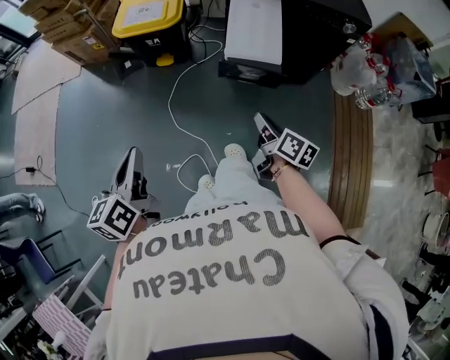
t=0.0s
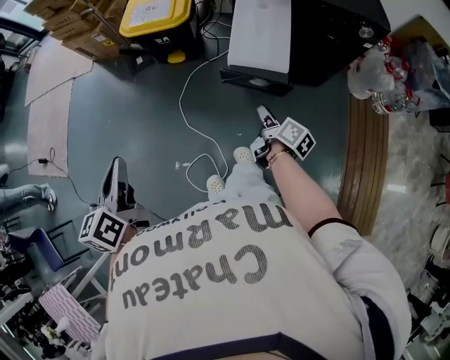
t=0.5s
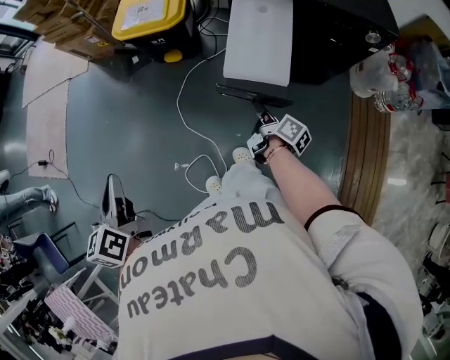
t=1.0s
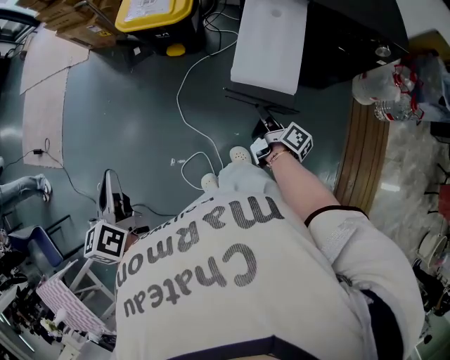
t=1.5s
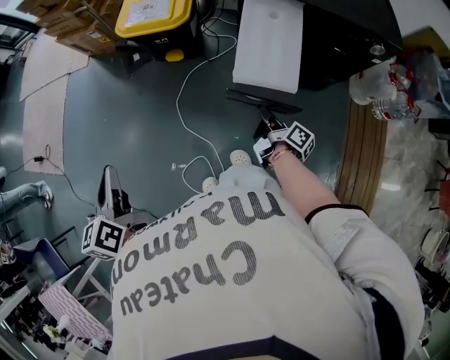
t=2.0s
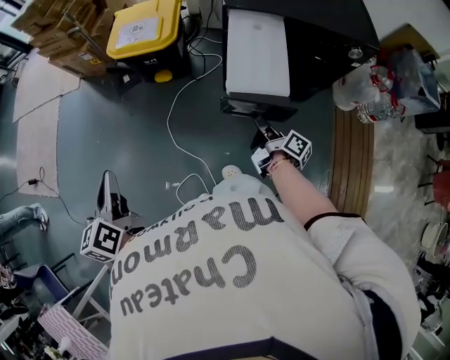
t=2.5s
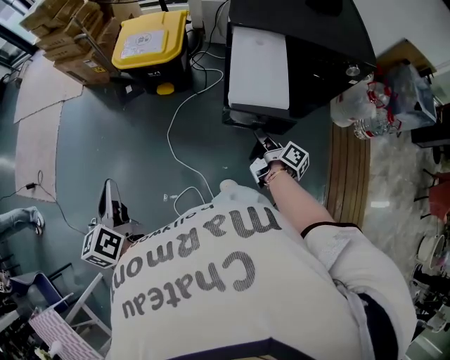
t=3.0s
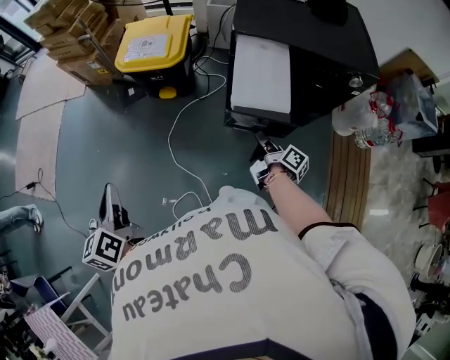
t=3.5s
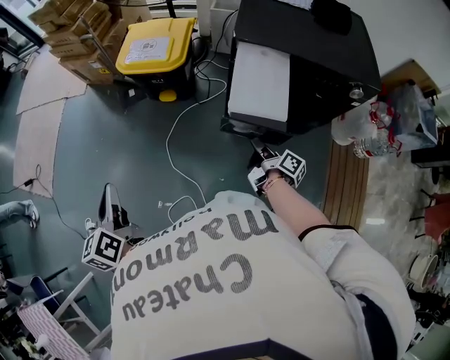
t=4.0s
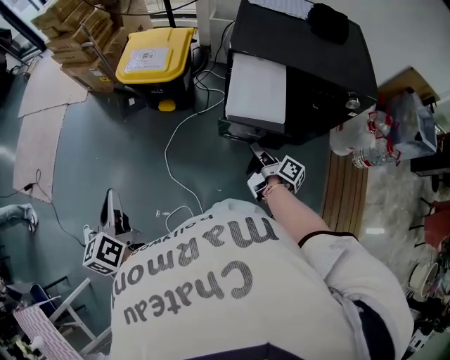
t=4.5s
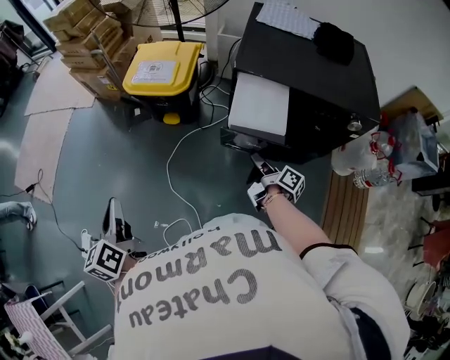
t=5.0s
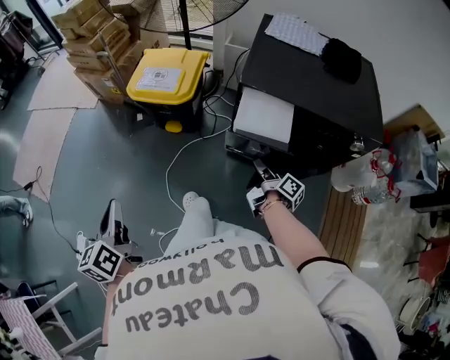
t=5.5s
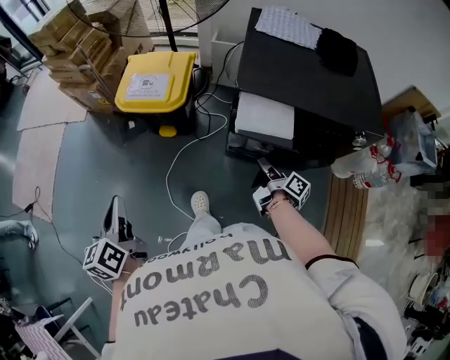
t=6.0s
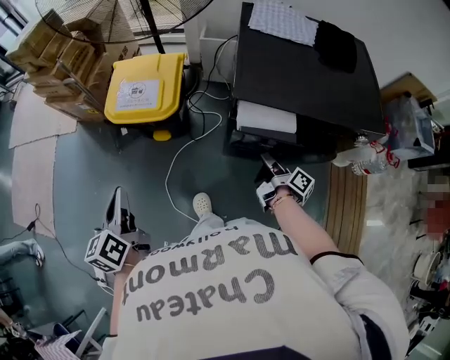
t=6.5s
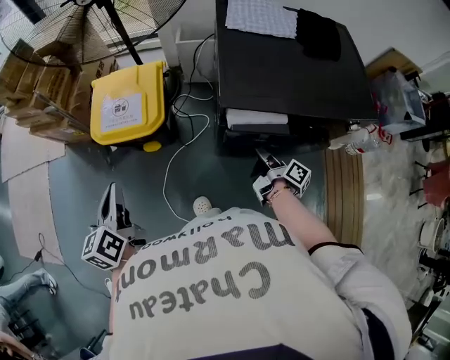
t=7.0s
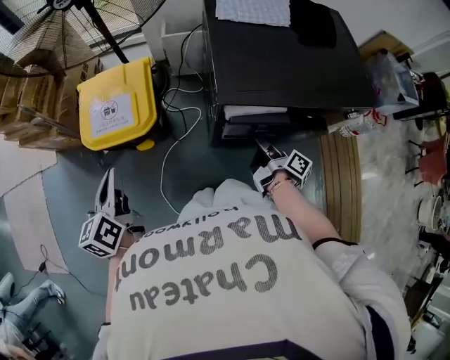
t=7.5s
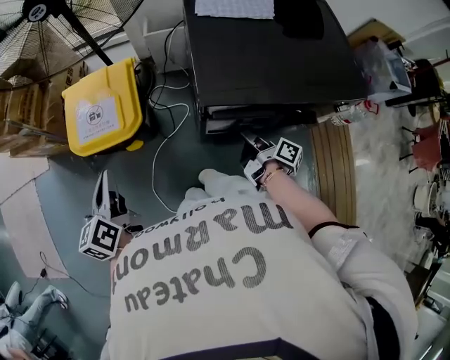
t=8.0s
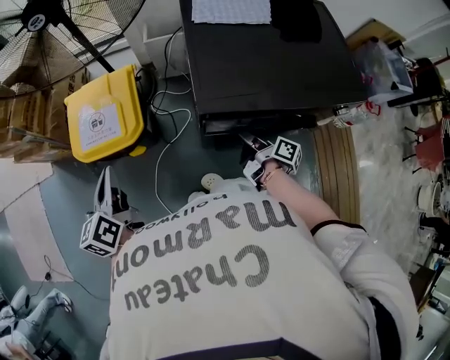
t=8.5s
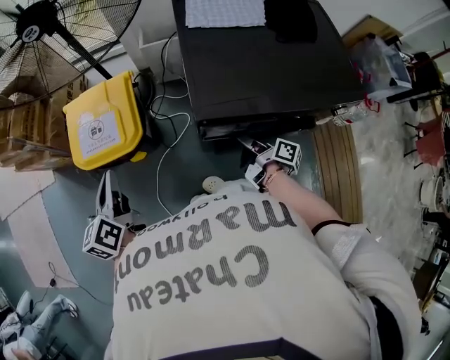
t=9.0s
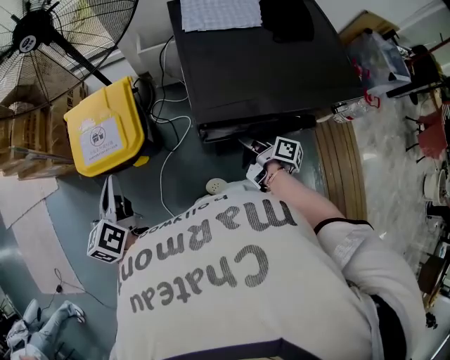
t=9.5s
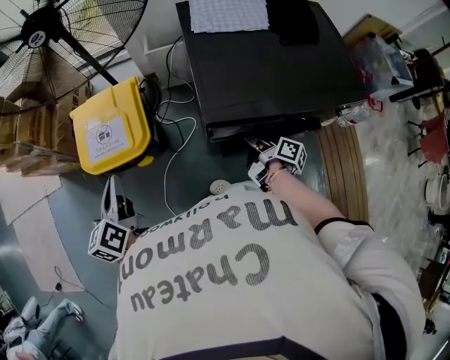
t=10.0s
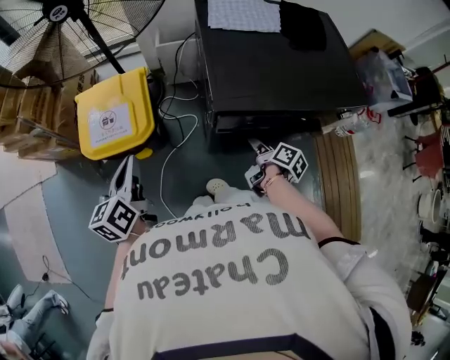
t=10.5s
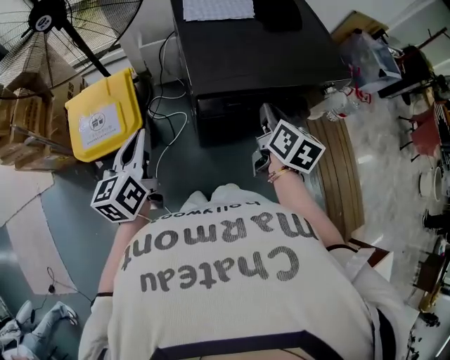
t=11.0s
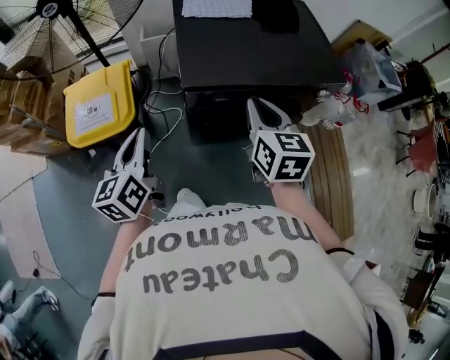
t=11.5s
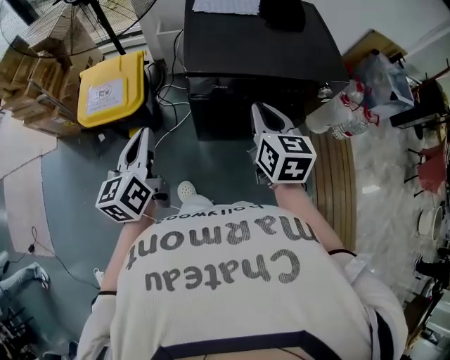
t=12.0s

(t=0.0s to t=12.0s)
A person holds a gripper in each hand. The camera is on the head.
t=0.0s - t=2.0s: The left gripper travels forward by about 10 cm, while the right gripper is displaced forward and downward by about 15 cm, and changes its angle by about 30 degrees.
t=2.0s - t=4.0s: The right gripper shifts by approximately 5 cm.
t=4.0s - t=6.0s: The left gripper heads forward, covering approximately 10 cm; the right gripper travels forward and to the right by roughly 10 cm.
t=6.0s - t=8.0s: The right gripper travels forward by approximately 10 cm. The left gripper travels forward by roughly 25 cm.
t=8.0s - t=10.0s: There are only small adjustments of the grippers.
t=10.0s - t=12.0s: The left gripper is displaced to the right and backward by roughly 20 cm, while the right gripper heads upward and backward, covering roughly 25 cm, rolls counterclockwise, seen from behind, by some 70 degrees, and opens, then closes once more.

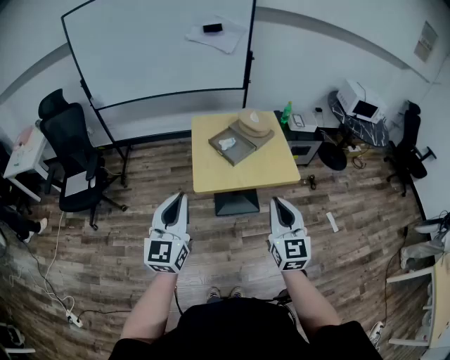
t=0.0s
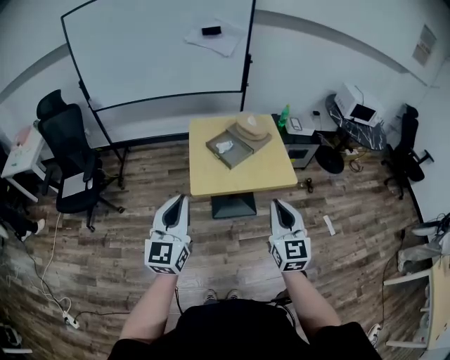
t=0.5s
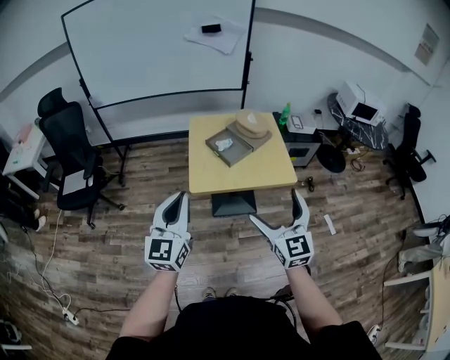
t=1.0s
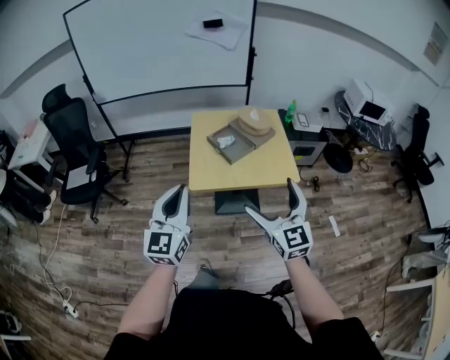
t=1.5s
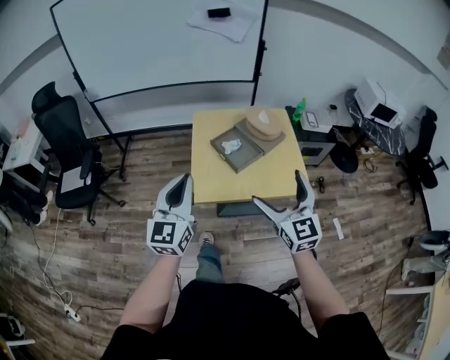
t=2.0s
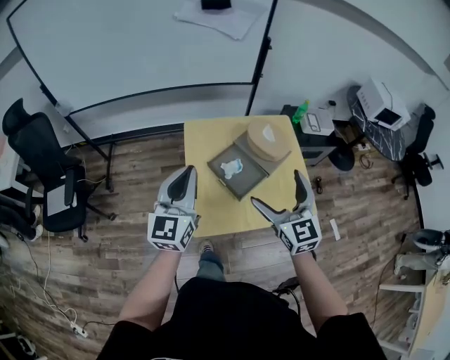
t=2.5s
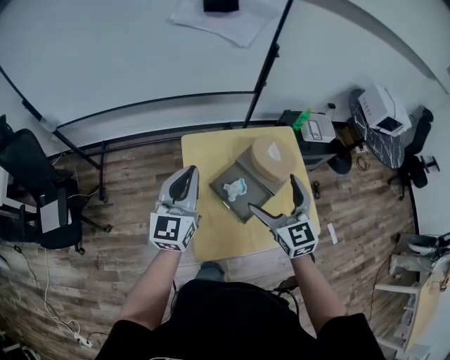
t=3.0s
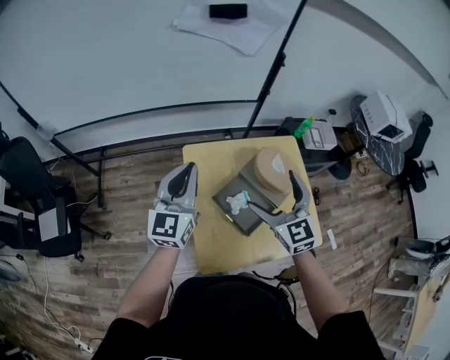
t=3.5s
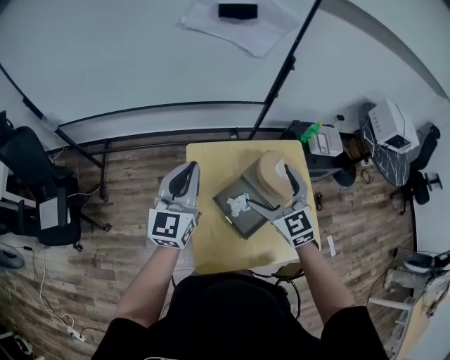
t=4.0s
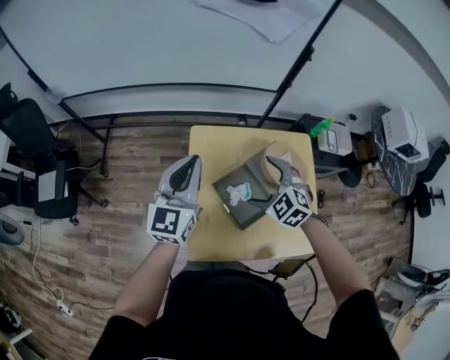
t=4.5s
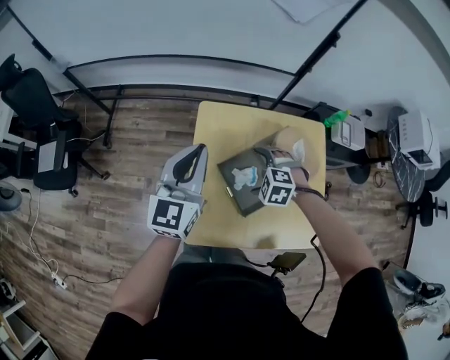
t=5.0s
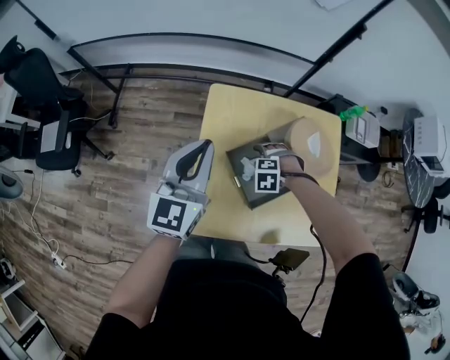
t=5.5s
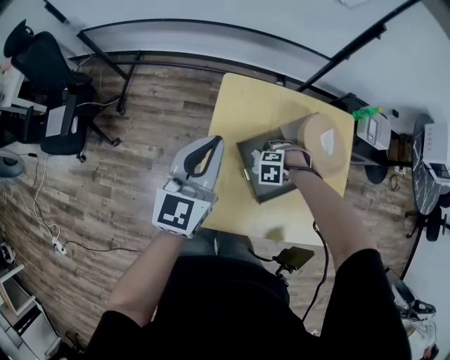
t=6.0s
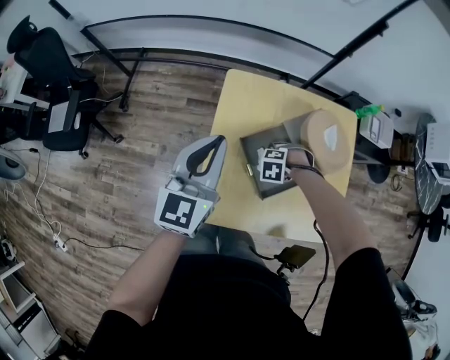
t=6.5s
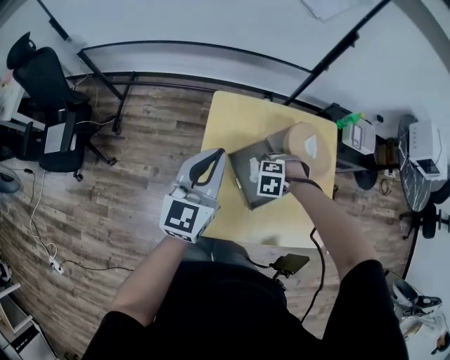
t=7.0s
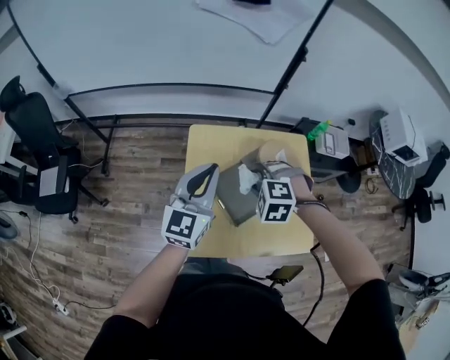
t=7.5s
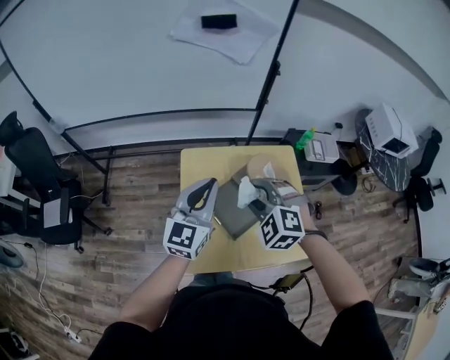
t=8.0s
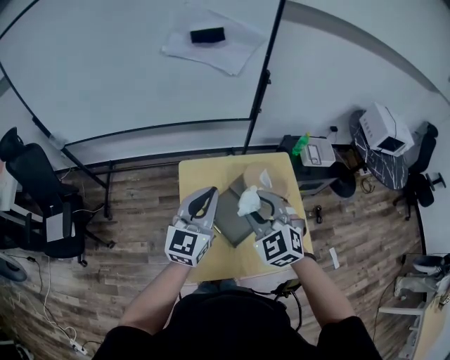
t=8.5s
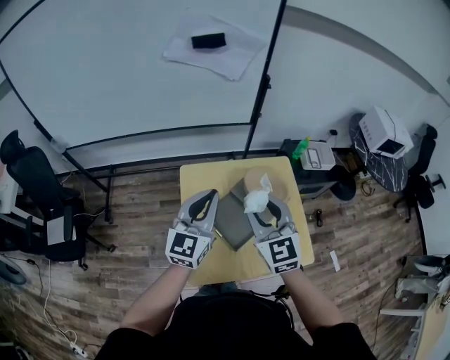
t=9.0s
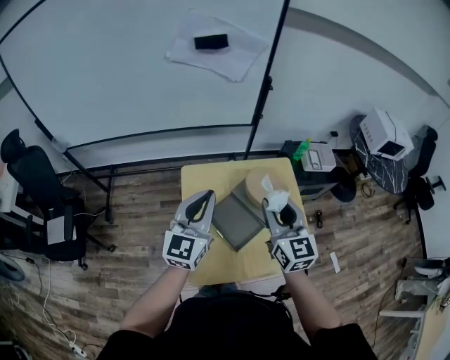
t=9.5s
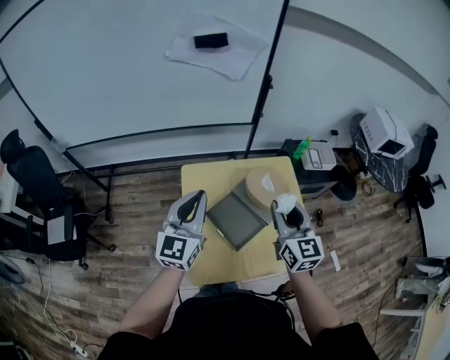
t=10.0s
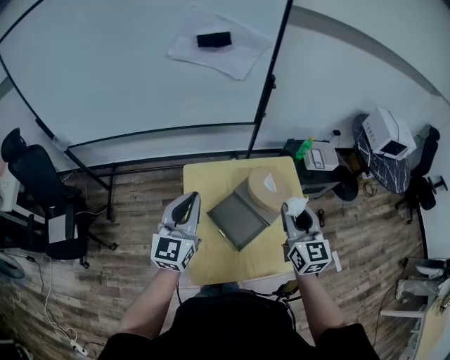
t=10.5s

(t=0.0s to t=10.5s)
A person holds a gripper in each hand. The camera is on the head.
t=0.0s - t=2.0s: Both grippers travel together forward, some 15 cm. The right gripper opens up.
t=2.0s - t=4.0s: Both grippers are carried forward, approximately 40 cm. The right gripper changes its angle by roughly 20 degrees.
t=4.0s - t=6.5s: The left gripper shifts roughly 10 cm downward; the right gripper heads downward, covering about 35 cm, points its fingers about 60 degrees further downward, and closes up.
t=6.5s - t=8.5s: The left gripper shifts approximately 10 cm upward, and rotates some 20 degrees. Meanwhile the right gripper heads upward, covering roughly 40 cm, and tips its fingers upward by about 60 degrees.
t=8.5s - t=10.5s: The right gripper shifts roughly 10 cm to the right, and twists about 40 degrees clockwise, seen from behind; the left gripper shifts some 5 cm to the left.

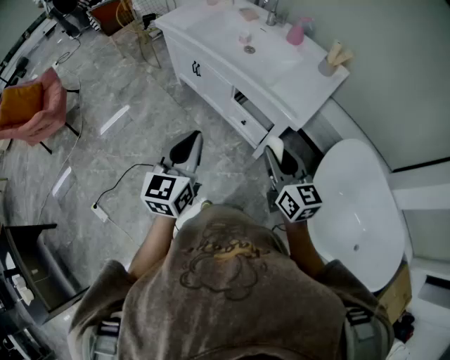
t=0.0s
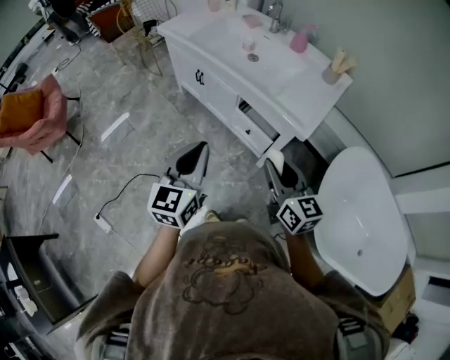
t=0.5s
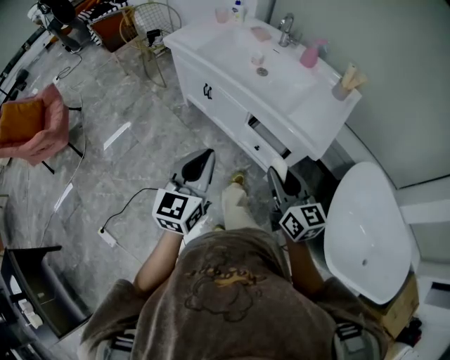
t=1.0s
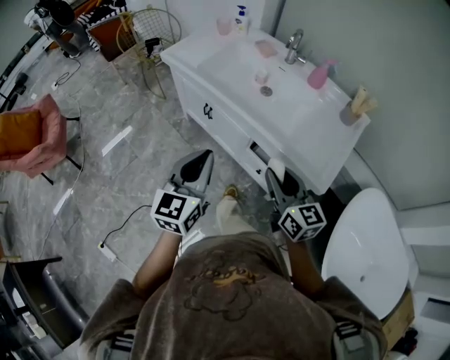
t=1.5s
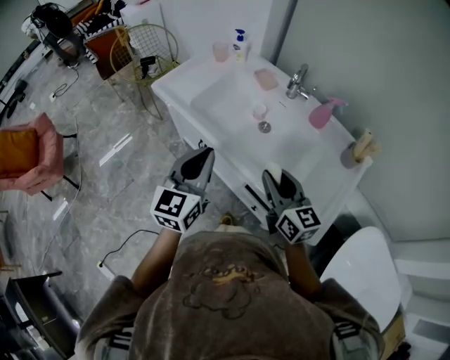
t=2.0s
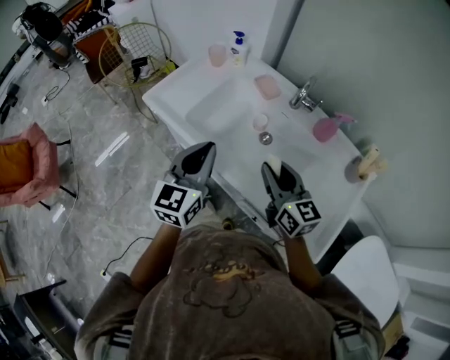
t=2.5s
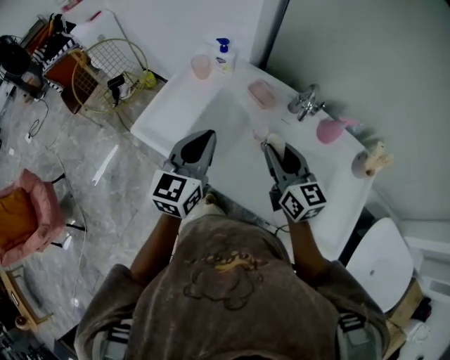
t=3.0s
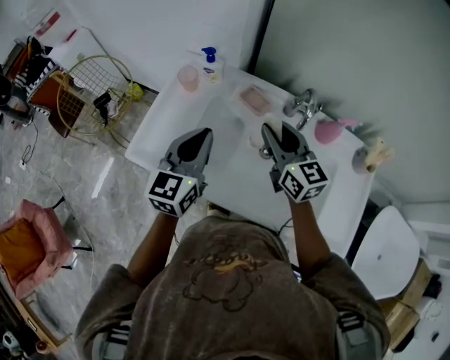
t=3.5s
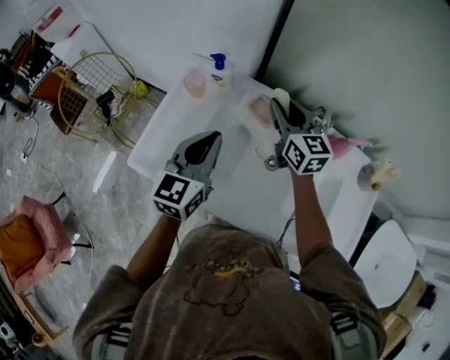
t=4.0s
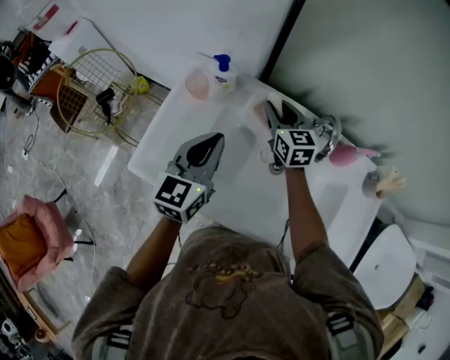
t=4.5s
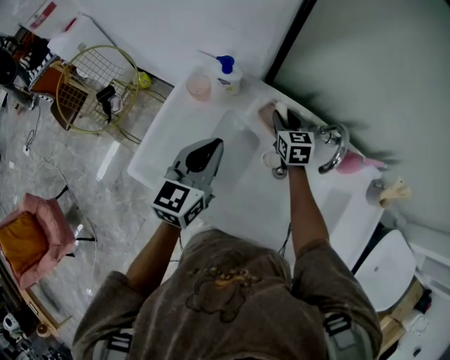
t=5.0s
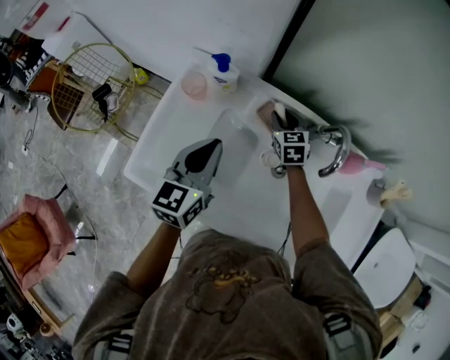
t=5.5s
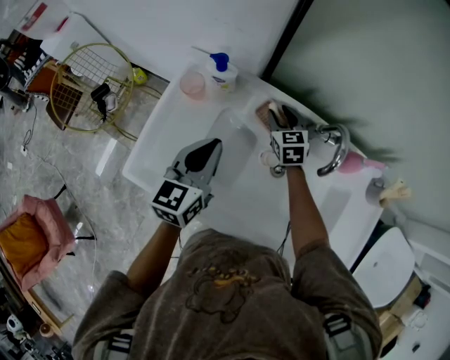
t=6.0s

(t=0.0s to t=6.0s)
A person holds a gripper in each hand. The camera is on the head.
t=0.0s - t=2.0s: Both grippers are carried forward, roughly 40 cm.
t=2.0s - t=4.0s: Both grippers are carried forward, approximately 50 cm. The right gripper turns by roughly 20 degrees. Meanwhile the left gripper changes its angle by some 20 degrees.
t=4.0s - t=6.0s: The right gripper shifts some 20 cm downward and forward, and turns by about 30 degrees; the left gripper heads downward and forward, covering approximately 10 cm.
